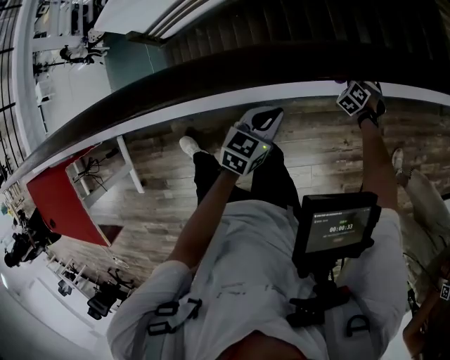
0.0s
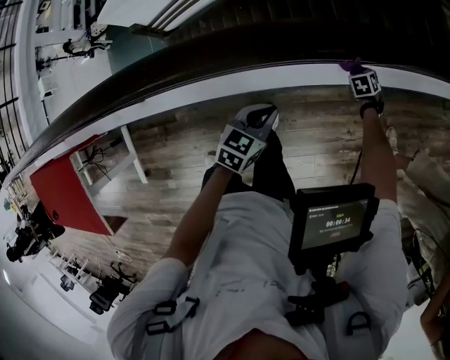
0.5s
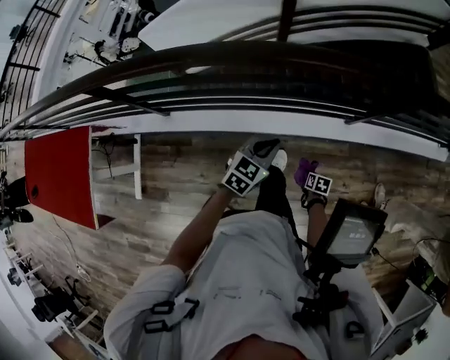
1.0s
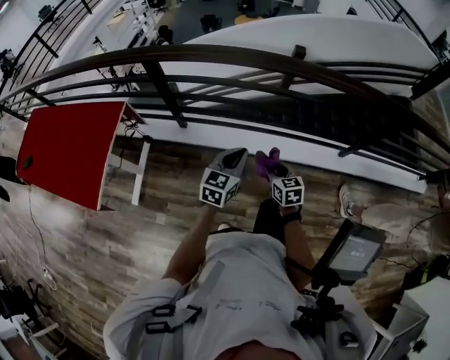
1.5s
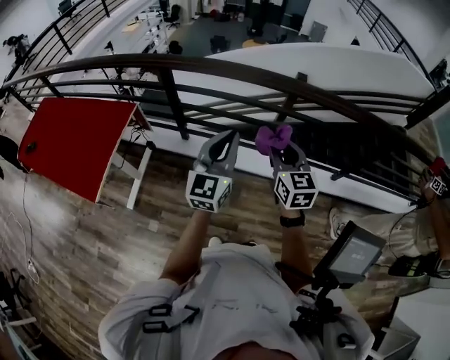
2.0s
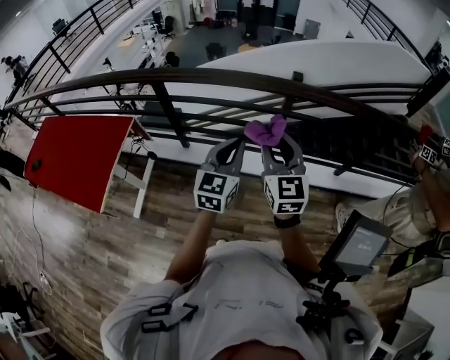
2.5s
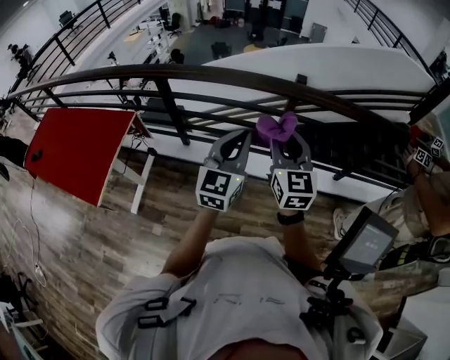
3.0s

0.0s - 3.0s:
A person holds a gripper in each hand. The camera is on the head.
0.0s - 1.5s: The two grippers travel together, about 60 cm. The left gripper turns by about 30 degrees. The right gripper turns by about 70 degrees.
1.5s - 3.0s: The left gripper is displaced upward by roughly 20 cm, and changes its angle by about 20 degrees; the right gripper moves upward, about 30 cm, and tilts its fingers about 30 degrees upward.

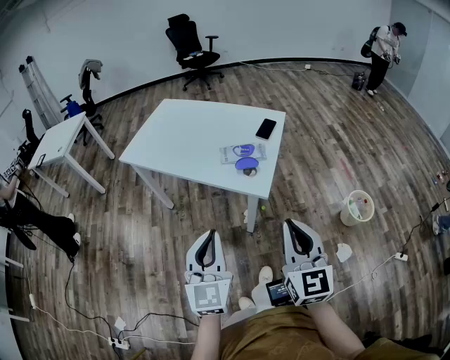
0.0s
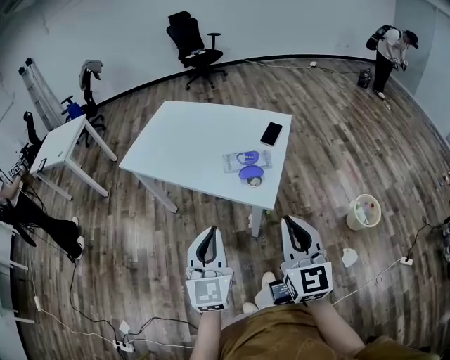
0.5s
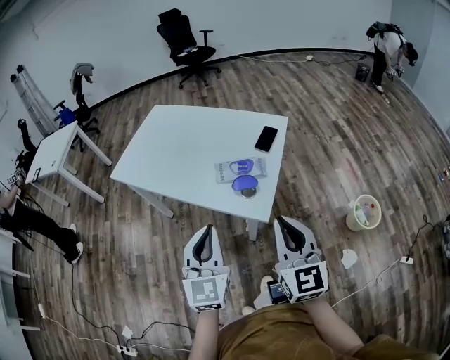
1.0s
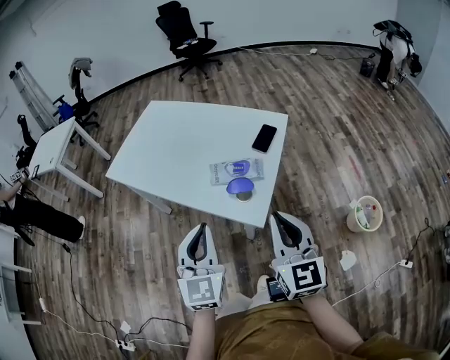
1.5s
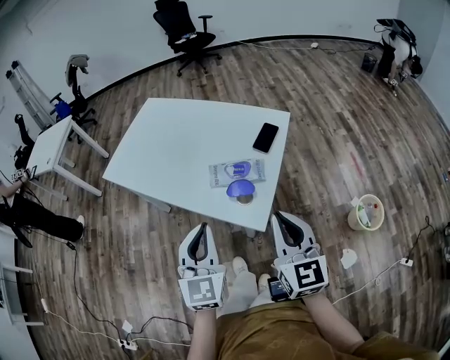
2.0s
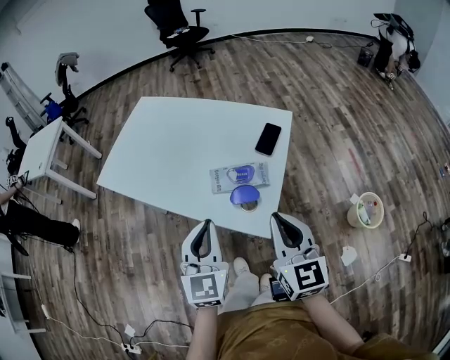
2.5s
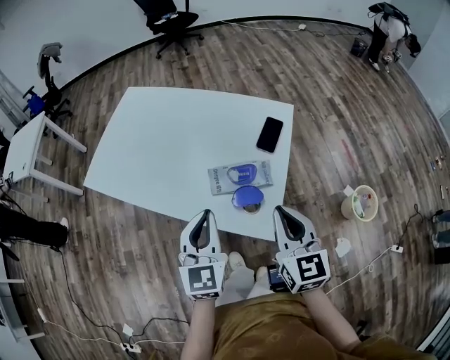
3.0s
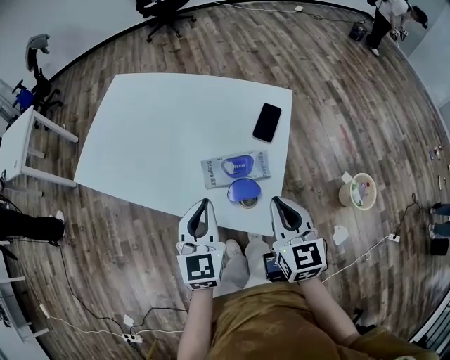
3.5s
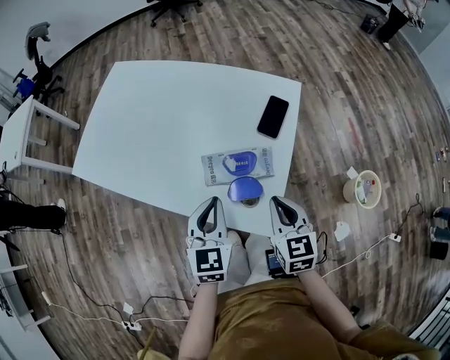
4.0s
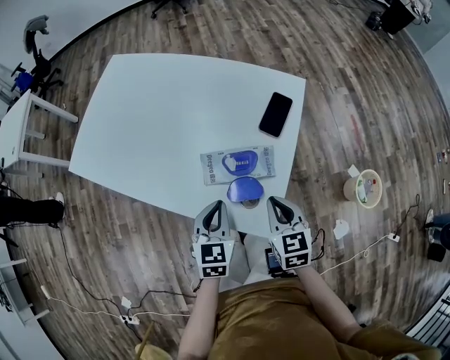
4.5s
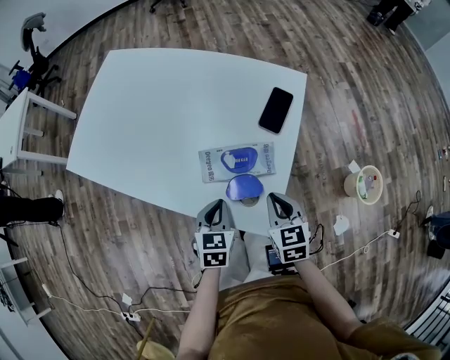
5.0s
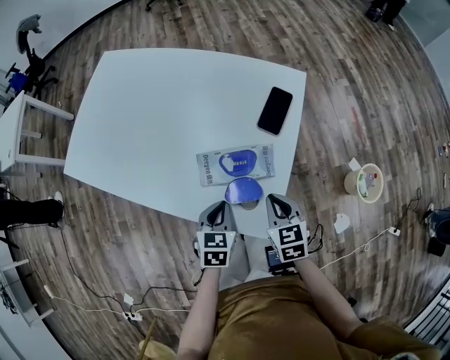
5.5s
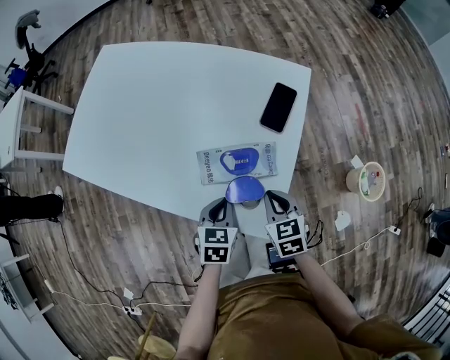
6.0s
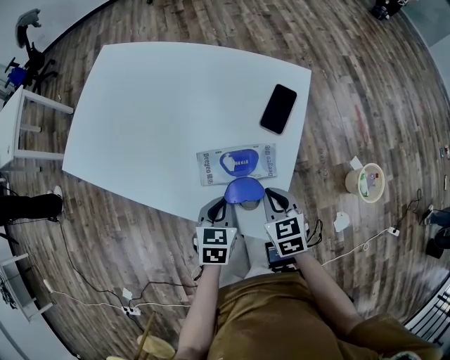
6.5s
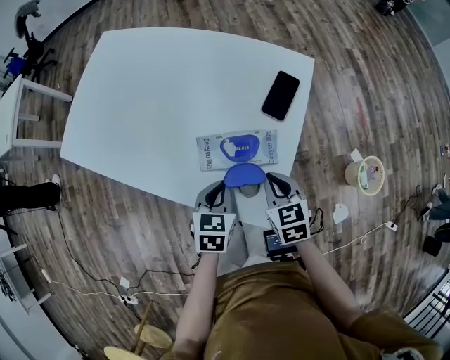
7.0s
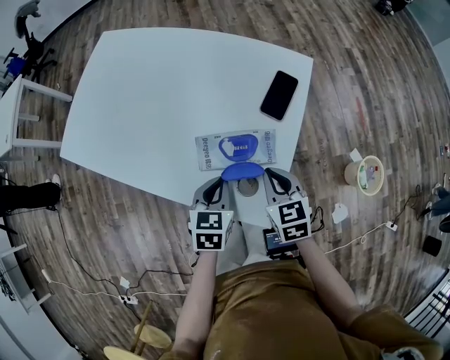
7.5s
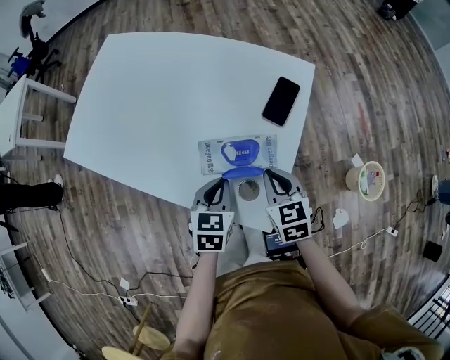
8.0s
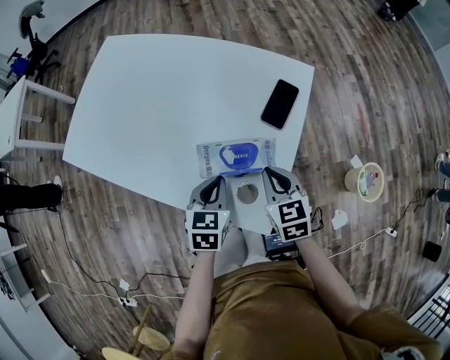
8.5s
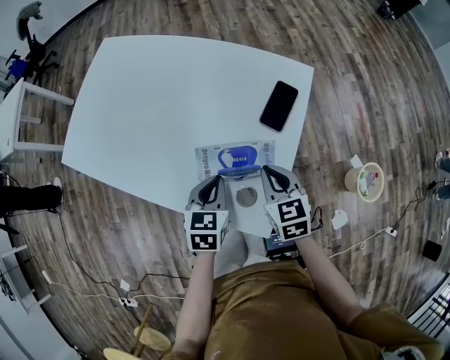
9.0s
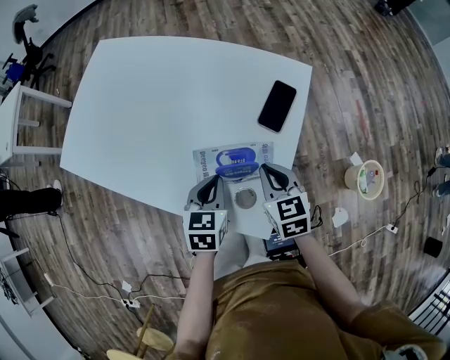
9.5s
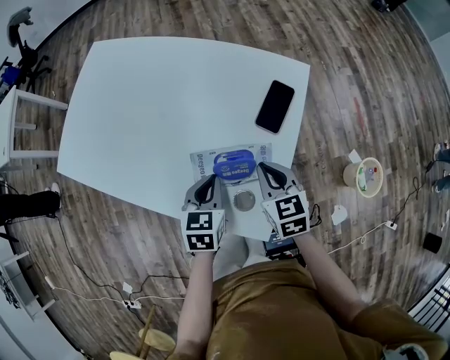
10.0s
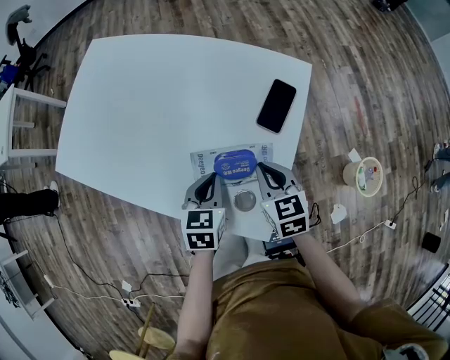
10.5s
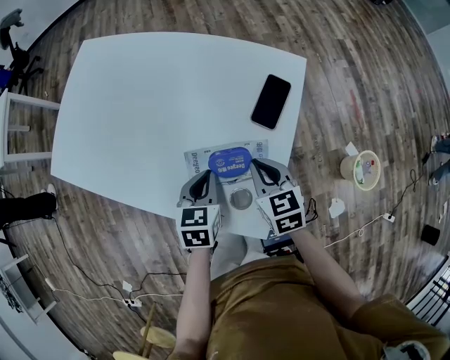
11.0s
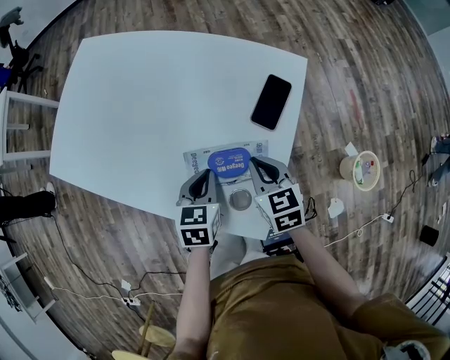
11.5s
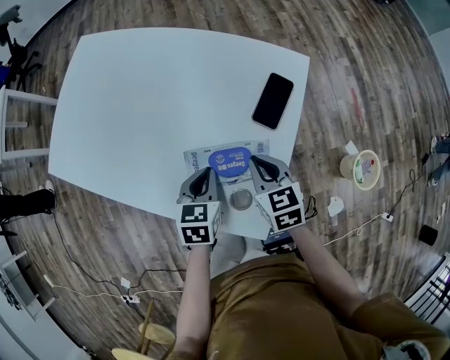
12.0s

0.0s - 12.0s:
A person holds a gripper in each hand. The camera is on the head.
0.0s - 2.0s: The grippers both shift forward by roughly 20 cm.
2.0s - 4.0s: The right gripper shifts roughly 20 cm downward and forward, and rotates roughly 20 degrees; the left gripper heads forward and downward, covering roughly 20 cm.
4.0s - 6.0s: The two grippers go some 15 cm downward. The left gripper changes its angle by some 30 degrees.
6.0s - 8.0s: The left gripper changes place by about 5 cm, while the right gripper shifts by roughly 5 cm.
8.0s - 10.0s: The grippers move only a little.
10.0s - 12.0s: The grippers move only a little.

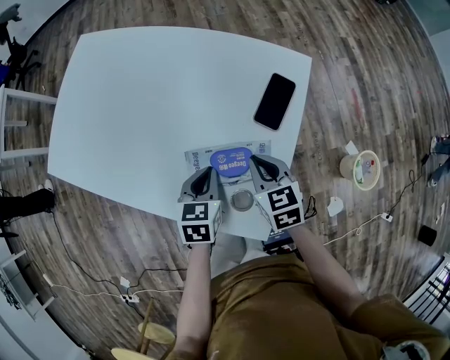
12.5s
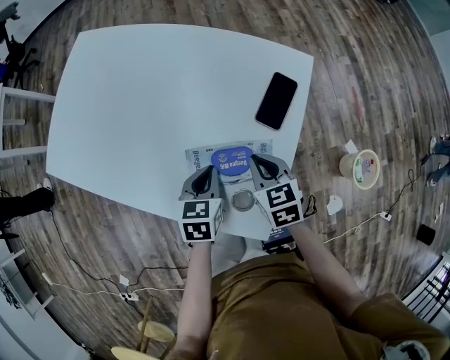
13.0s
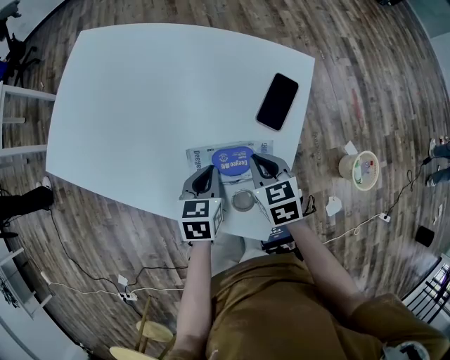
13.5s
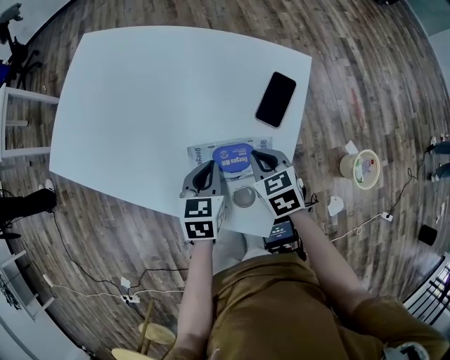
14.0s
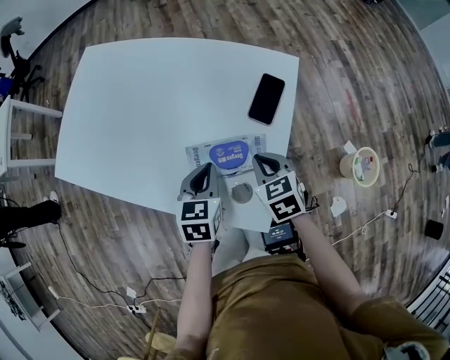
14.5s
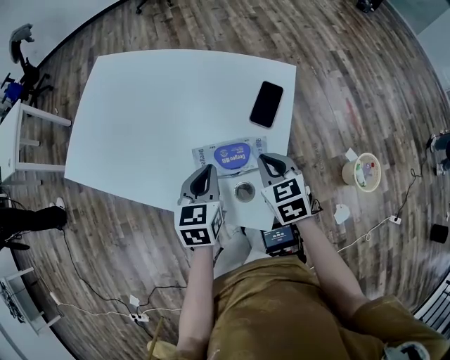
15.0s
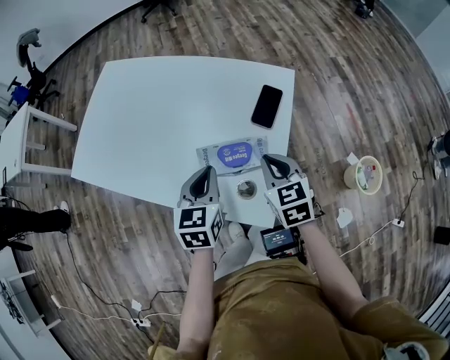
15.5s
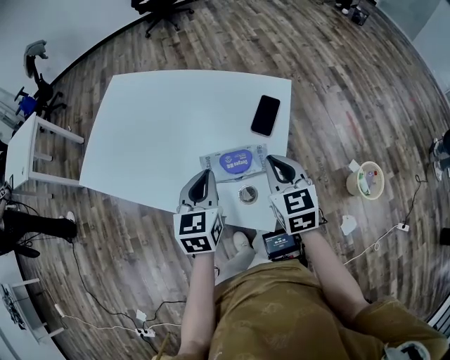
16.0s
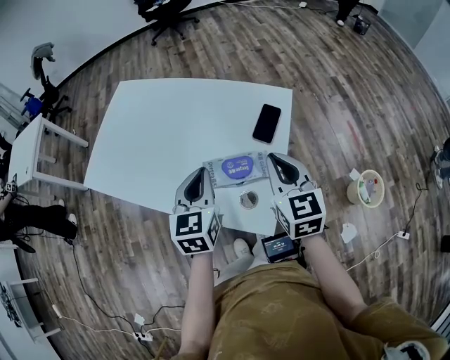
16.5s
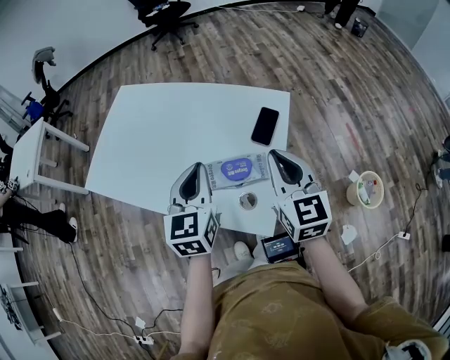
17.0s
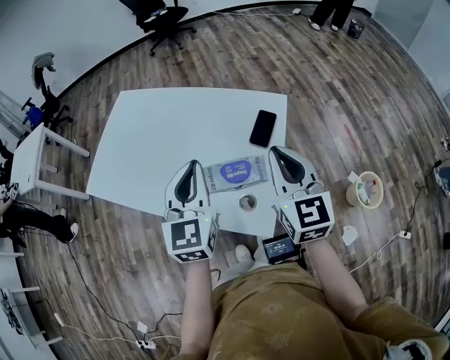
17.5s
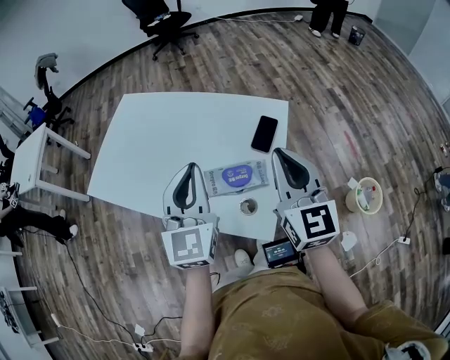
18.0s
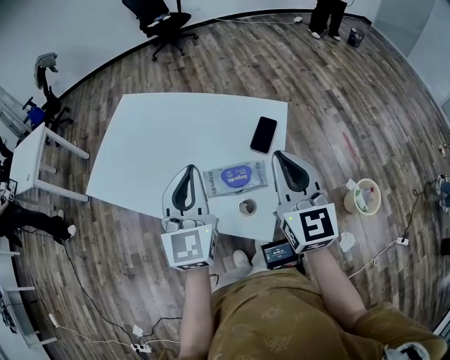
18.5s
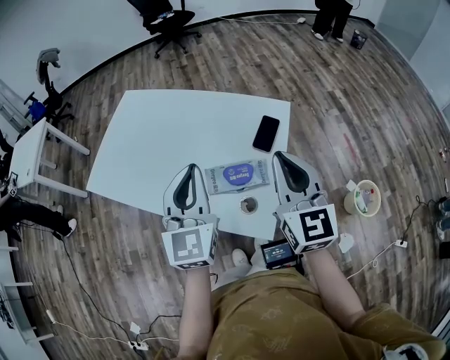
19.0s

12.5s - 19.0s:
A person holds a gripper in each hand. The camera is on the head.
12.5s - 14.5s: There are only small adjustments of the grippers.
14.5s - 17.0s: Both grippers move upward, roughly 20 cm. The left gripper swivels some 30 degrees. The right gripper angles its fingers upward, by some 40 degrees.
17.0s - 19.0s: The grippers both shift upward by roughly 5 cm.

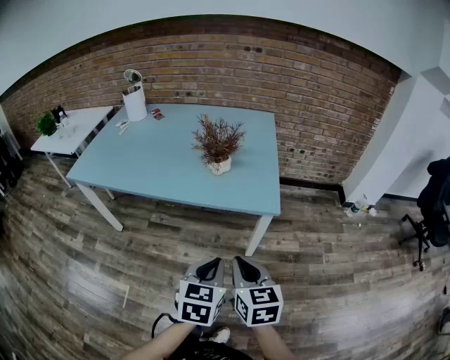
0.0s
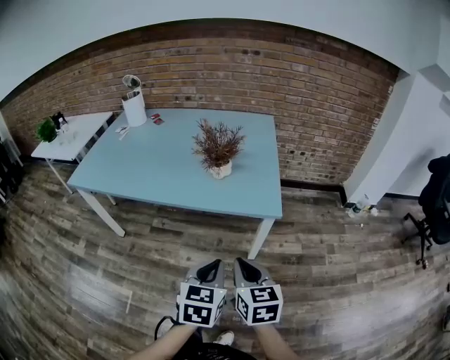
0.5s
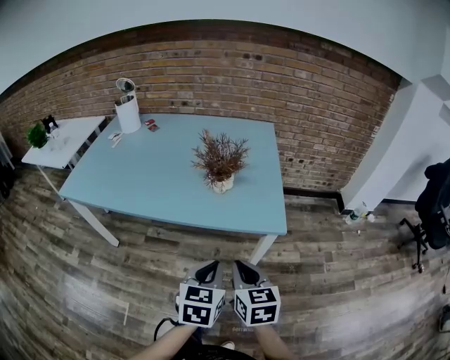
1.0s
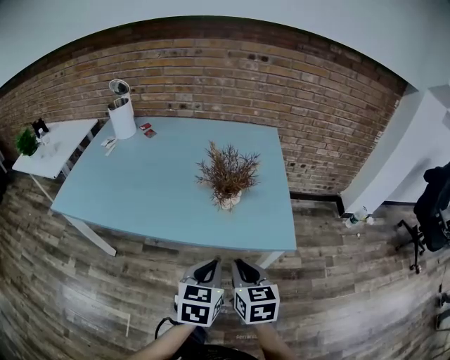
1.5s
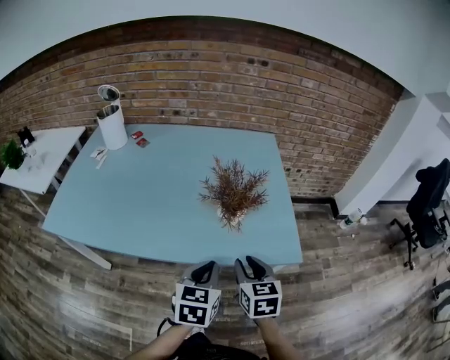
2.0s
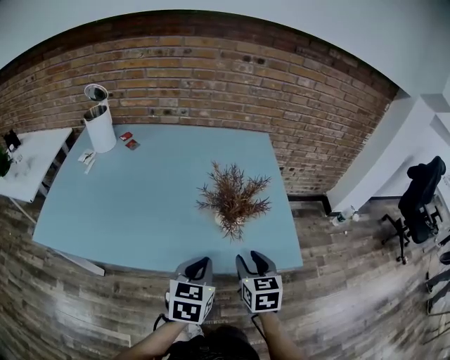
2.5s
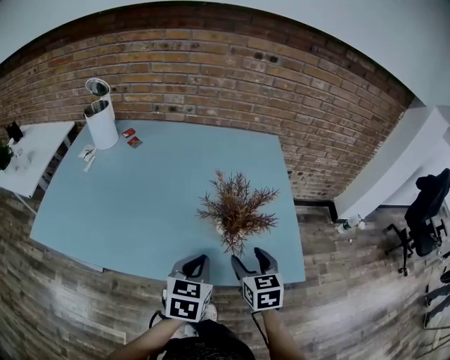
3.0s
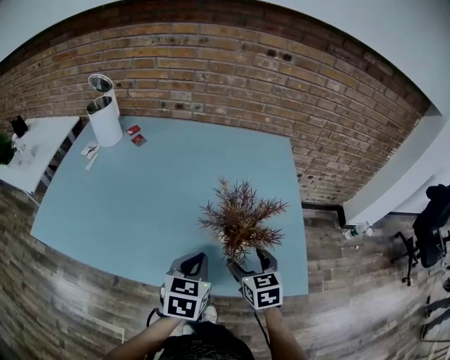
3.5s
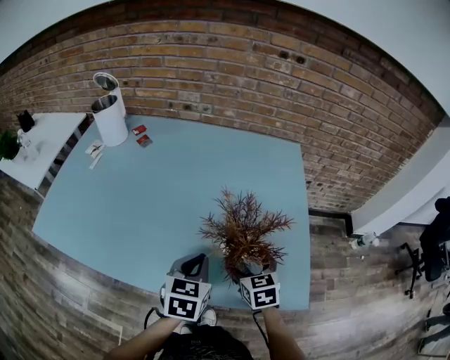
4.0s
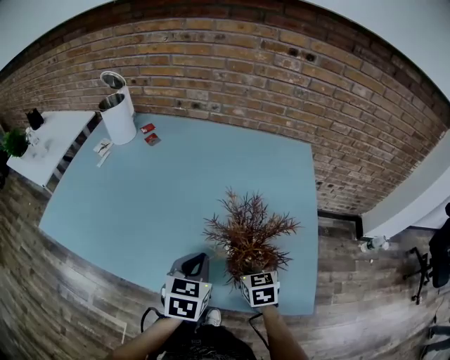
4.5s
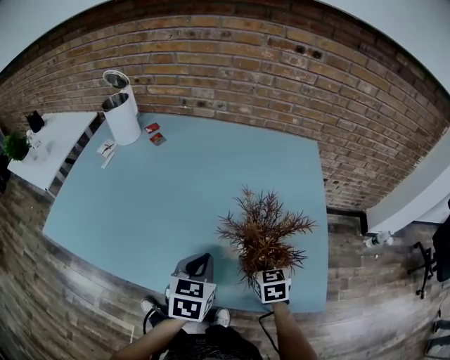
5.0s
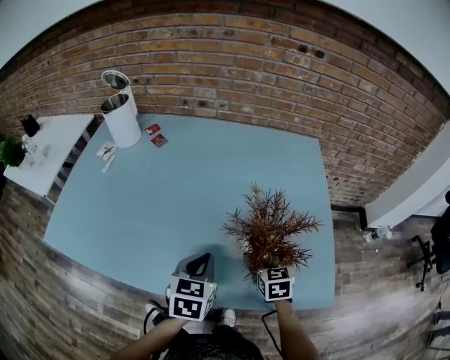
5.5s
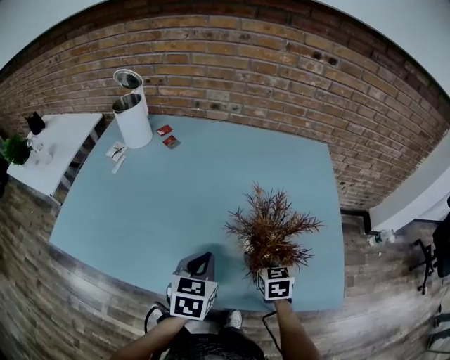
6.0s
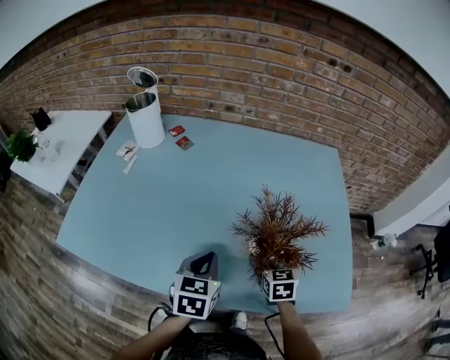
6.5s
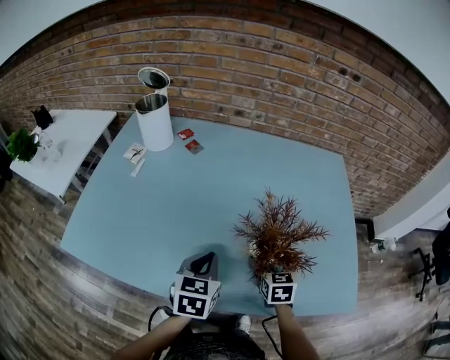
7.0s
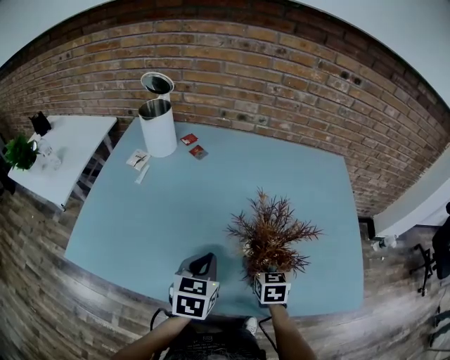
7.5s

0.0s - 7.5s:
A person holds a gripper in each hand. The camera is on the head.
0.0s - 2.0s: The left gripper heads forward and to the left, covering some 25 cm; the right gripper travels forward by approximately 25 cm.
2.0s - 4.0s: The left gripper is displaced forward by about 15 cm, while the right gripper heads forward and downward, covering about 20 cm, and opens up.
4.0s - 5.5s: The left gripper shifts roughly 5 cm to the left.
5.5s - 7.5s: Both grippers move to the left, approximately 15 cm.
